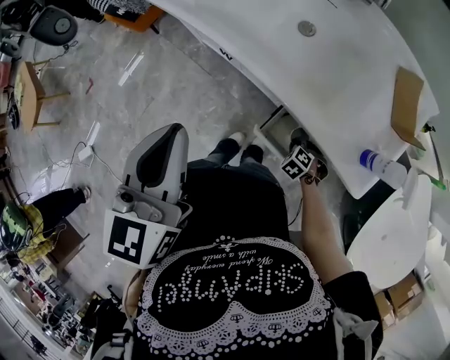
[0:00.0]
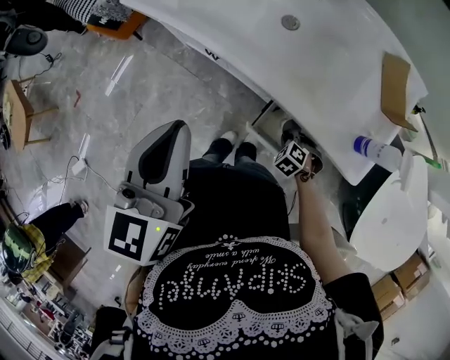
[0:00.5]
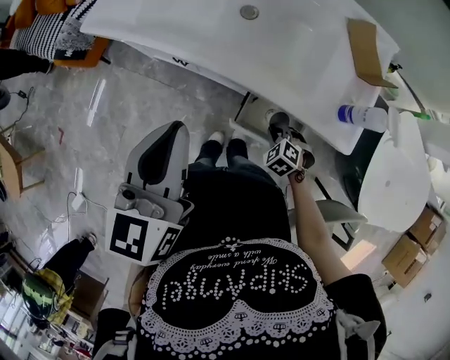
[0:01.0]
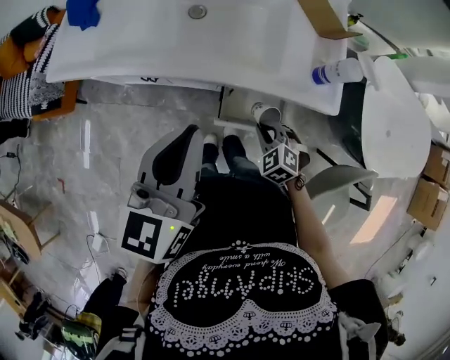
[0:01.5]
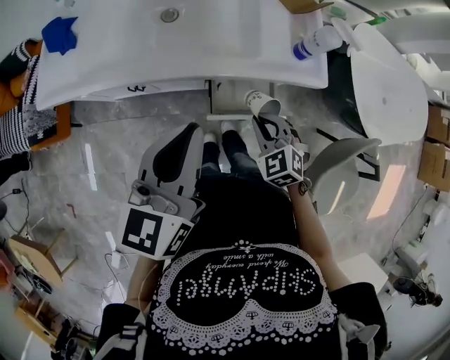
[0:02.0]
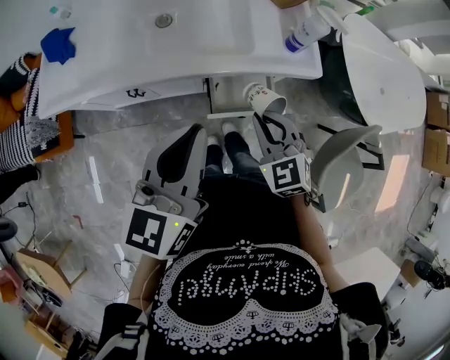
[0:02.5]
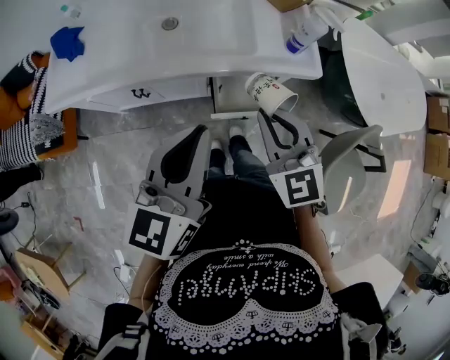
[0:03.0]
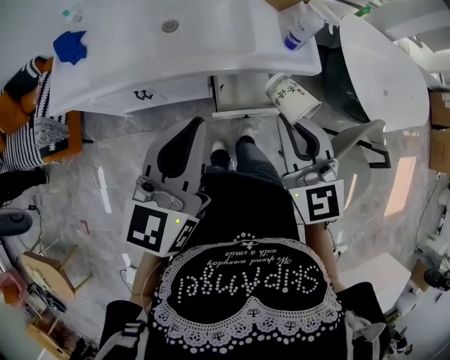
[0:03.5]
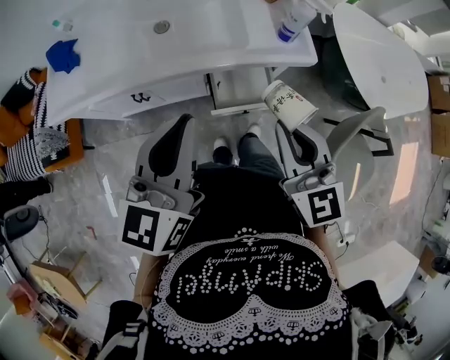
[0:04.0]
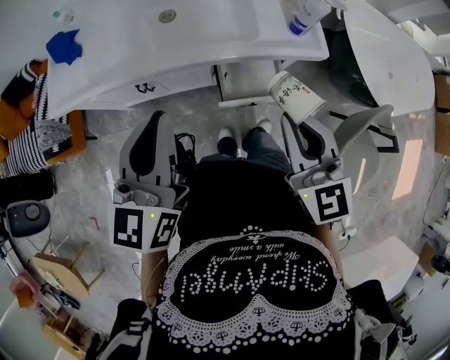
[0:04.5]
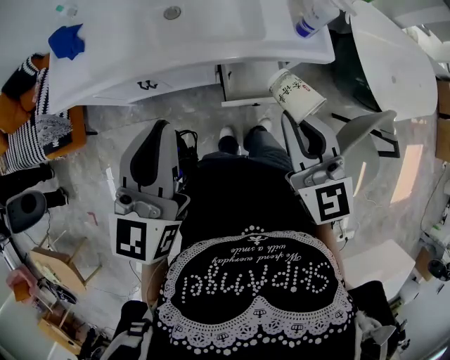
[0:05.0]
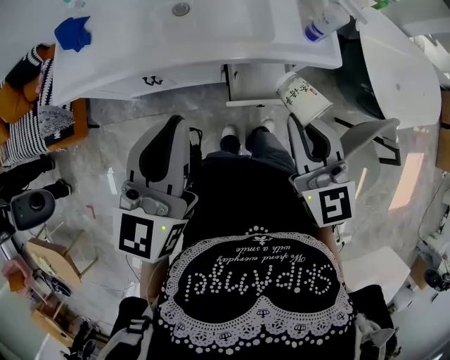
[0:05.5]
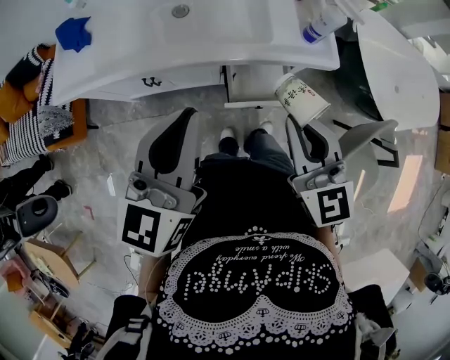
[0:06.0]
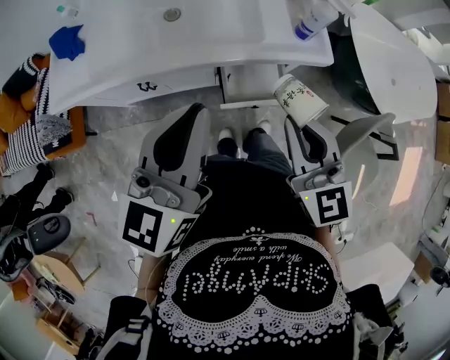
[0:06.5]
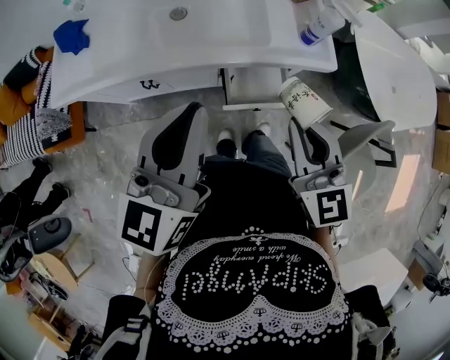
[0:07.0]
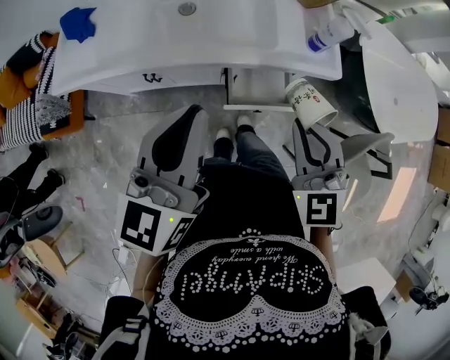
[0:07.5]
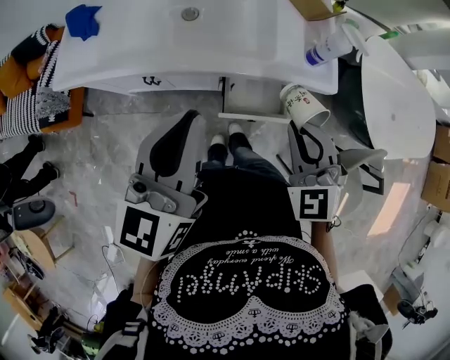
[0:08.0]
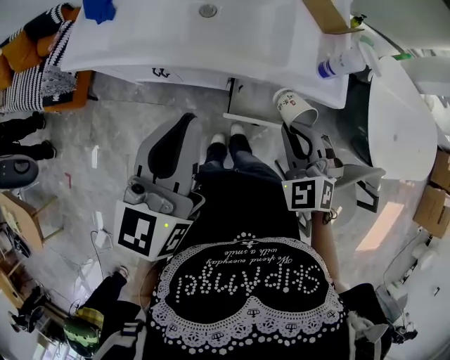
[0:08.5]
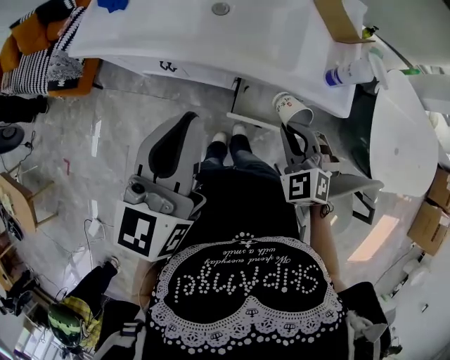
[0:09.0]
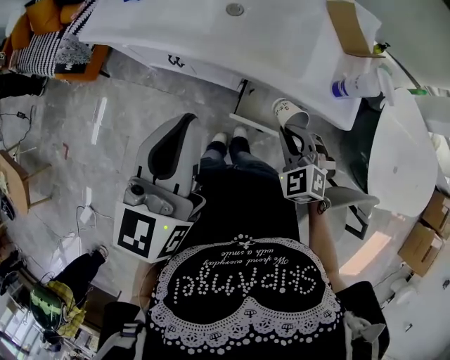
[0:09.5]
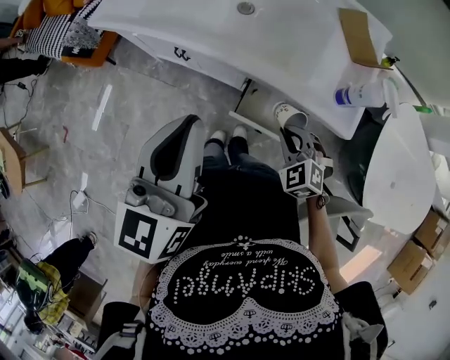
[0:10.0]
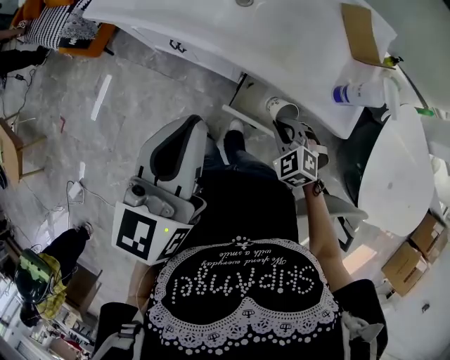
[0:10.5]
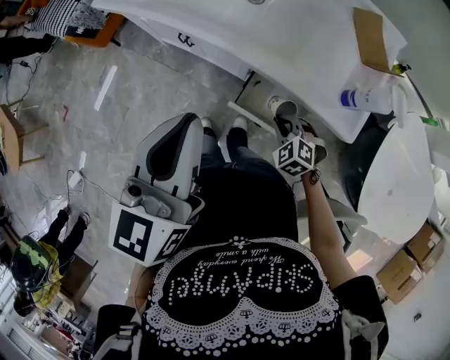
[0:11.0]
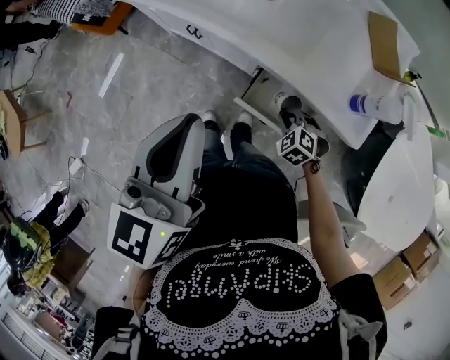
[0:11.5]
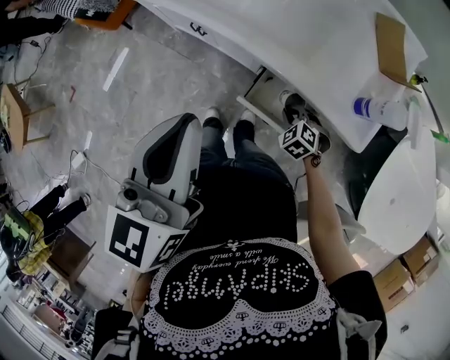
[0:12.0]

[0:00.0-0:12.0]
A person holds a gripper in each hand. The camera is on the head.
0:00.0 to 0:02.0: The left gripper shifts by roughly 10 cm, and changes its angle by roughly 50 degrees. Meanwhile the right gripper goes some 25 cm upward, and tilts its fingers roughly 30 degrees upward.
0:02.0 to 0:04.0: The right gripper moves upward, roughly 20 cm, and points its fingers approximately 30 degrees further upward.
0:04.0 to 0:06.0: The grippers move only a little.
0:06.0 to 0:08.0: The right gripper moves approximately 5 cm, and turns by approximately 40 degrees.
0:08.0 to 0:10.0: The right gripper heads downward, covering approximately 15 cm, and swivels about 30 degrees, while the left gripper rotates some 20 degrees.
0:10.0 to 0:12.0: The right gripper shifts about 15 cm downward.

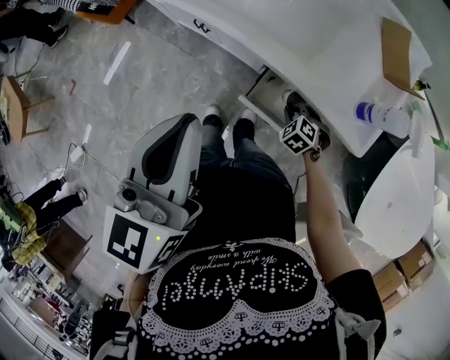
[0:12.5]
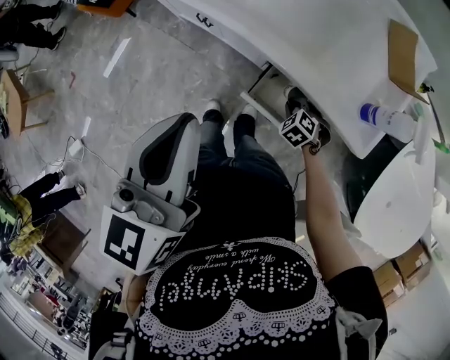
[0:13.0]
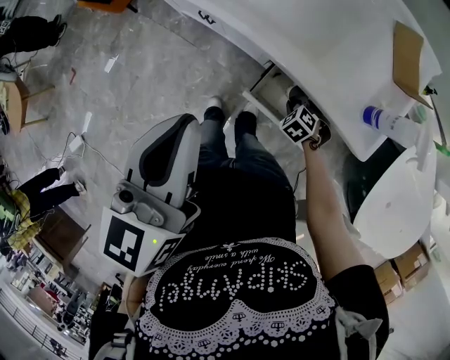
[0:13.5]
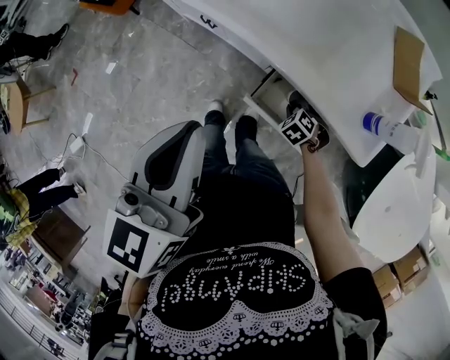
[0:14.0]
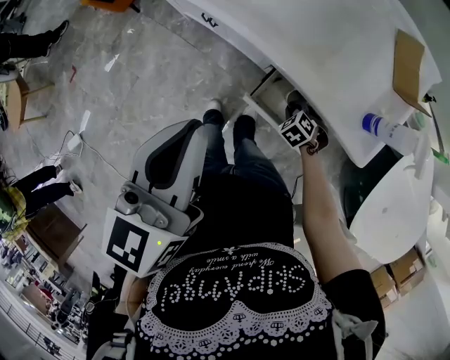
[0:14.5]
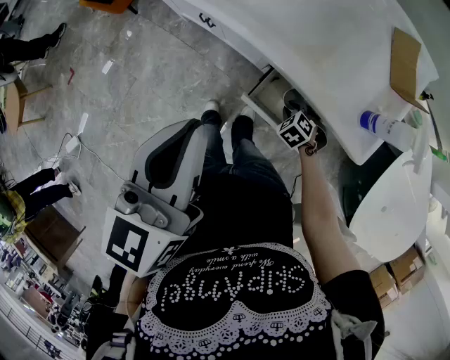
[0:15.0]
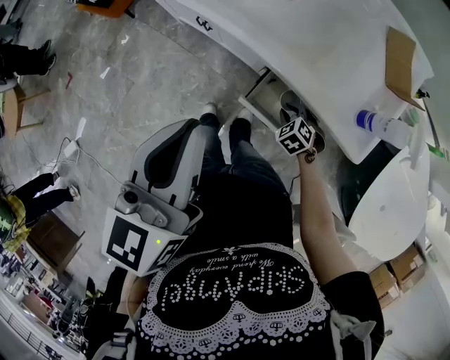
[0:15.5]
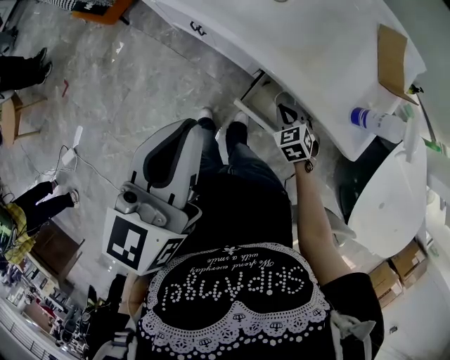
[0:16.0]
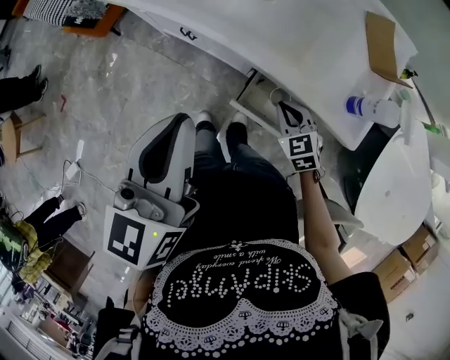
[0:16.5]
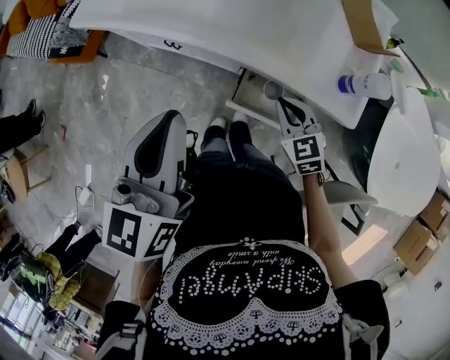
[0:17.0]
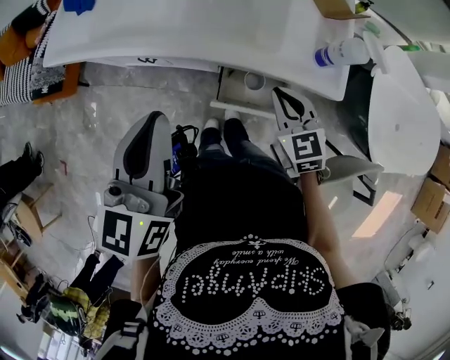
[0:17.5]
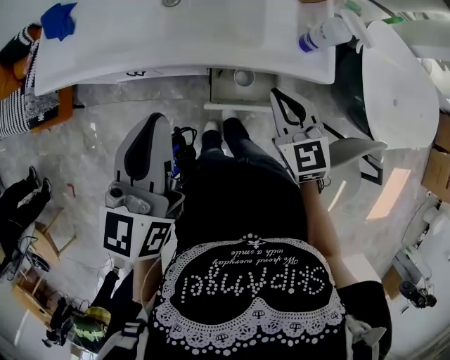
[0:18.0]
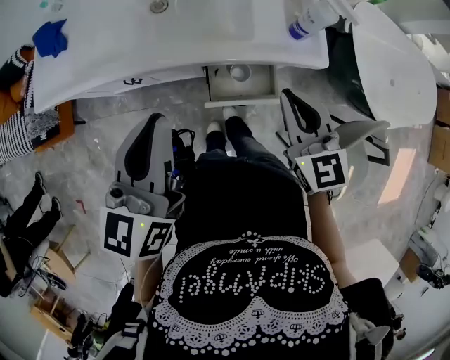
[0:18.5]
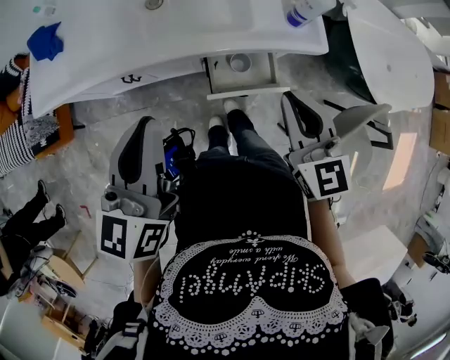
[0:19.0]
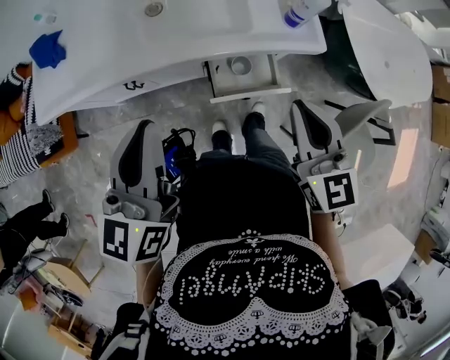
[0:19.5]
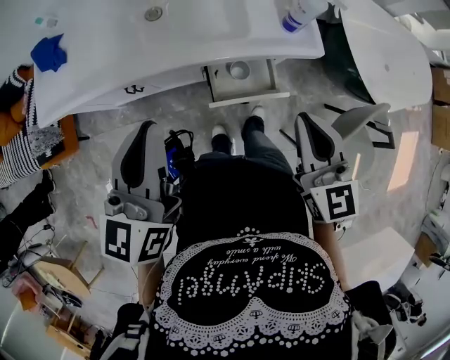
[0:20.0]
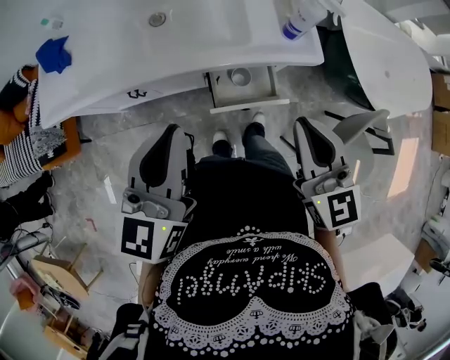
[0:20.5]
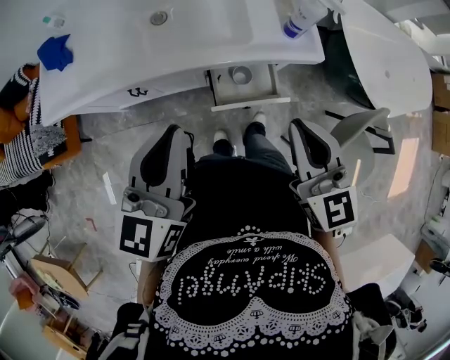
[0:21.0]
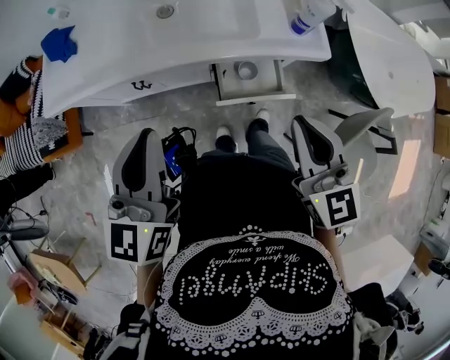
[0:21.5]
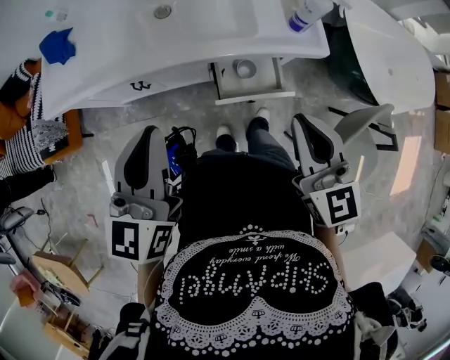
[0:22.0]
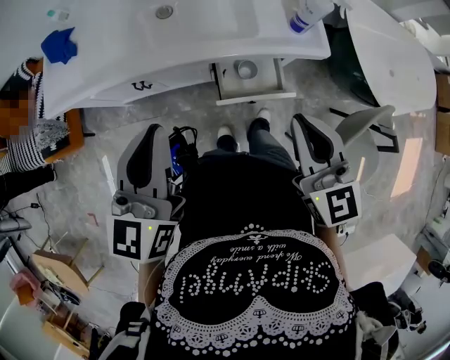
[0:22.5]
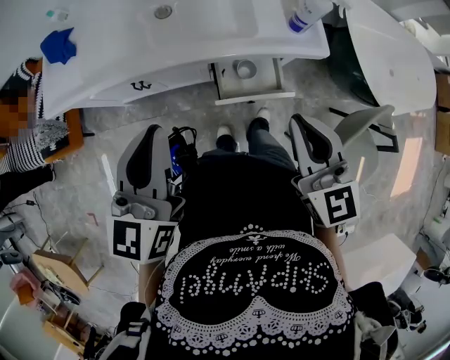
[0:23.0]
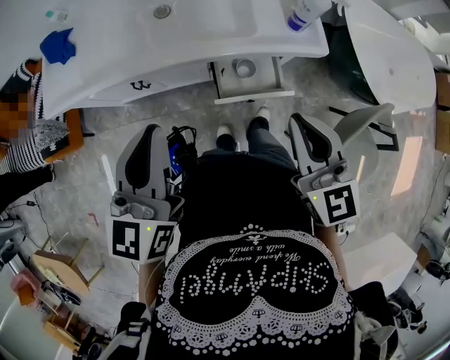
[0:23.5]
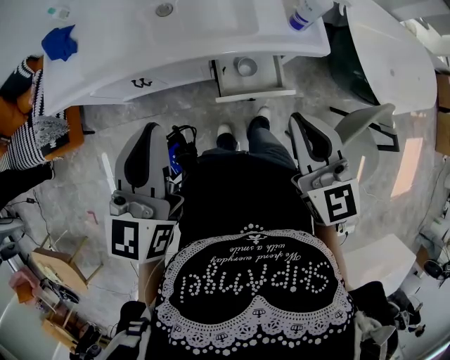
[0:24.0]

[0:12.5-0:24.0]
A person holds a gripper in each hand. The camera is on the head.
0:12.5 to 0:14.5: The grippers move only a little.
0:14.5 to 0:16.5: The right gripper shifts about 15 cm upward, and tips its fingers upward by some 30 degrees.
0:16.5 to 0:18.5: The right gripper goes some 20 cm upward, and turns by about 50 degrees. Meanwhile the left gripper turns by approximately 30 degrees.
0:18.5 to 0:20.0: The right gripper is displaced backward by approximately 5 cm.
0:20.0 to 0:22.0: The grippers make only small movements.
0:22.0 to 0:24.0: Both grippers stay about where they are.

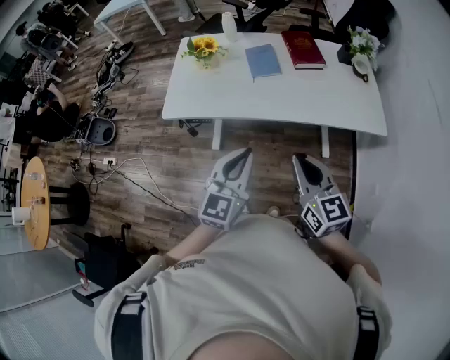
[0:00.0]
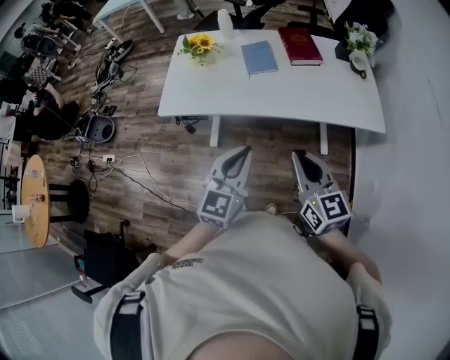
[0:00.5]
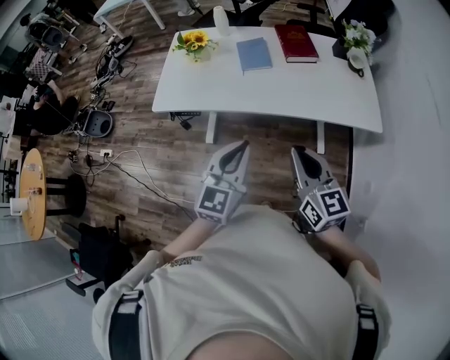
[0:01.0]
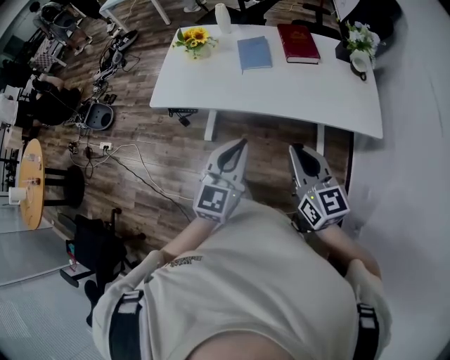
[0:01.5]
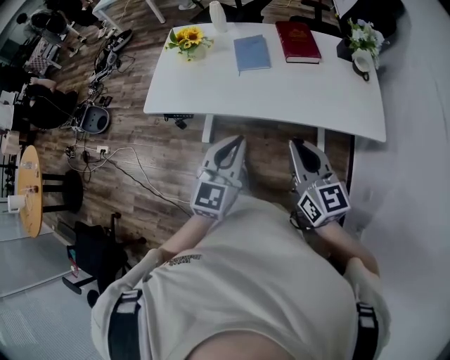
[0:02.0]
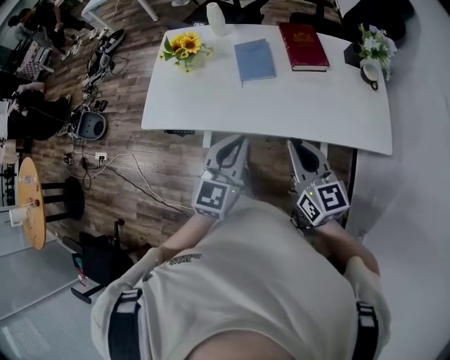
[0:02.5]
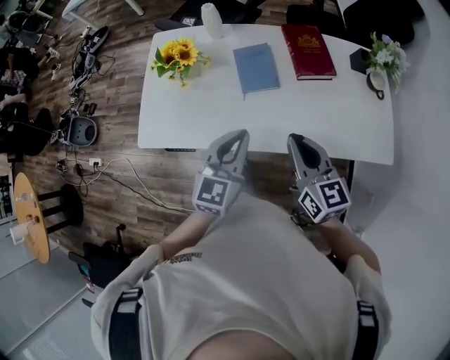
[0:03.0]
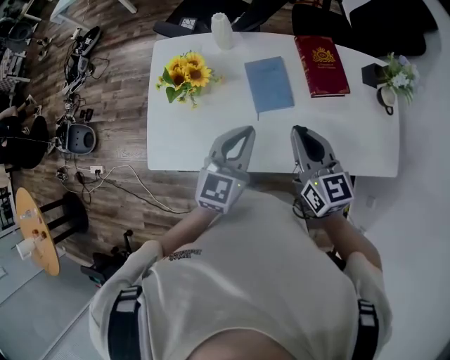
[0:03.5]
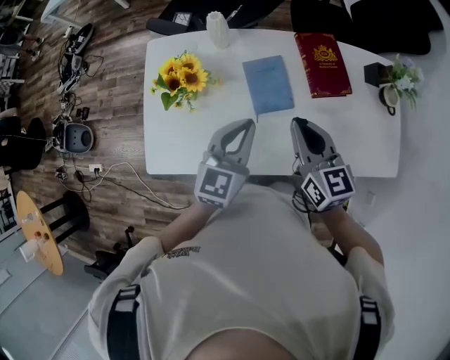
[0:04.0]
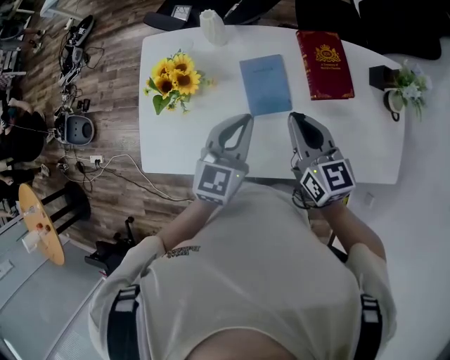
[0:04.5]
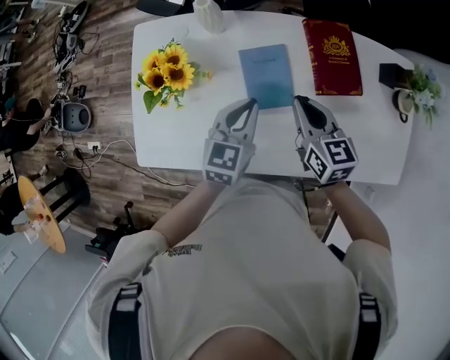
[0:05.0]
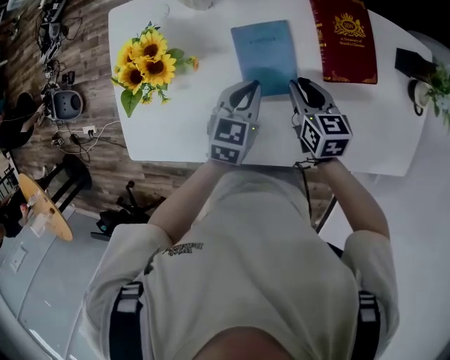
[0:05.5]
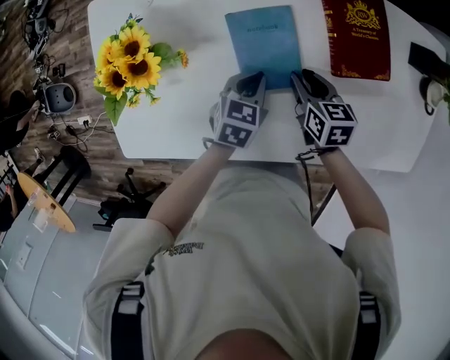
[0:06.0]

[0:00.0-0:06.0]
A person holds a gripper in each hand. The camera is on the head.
0:00.0 to 0:02.0: Both grippers travel together to the right and forward, some 10 cm.
0:02.0 to 0:04.0: Both grippers move forward, roughly 35 cm.
0:04.0 to 0:06.0: Both grippers move downward, some 25 cm. The right gripper points its fingers some 30 degrees further downward, and opens its fingers, while the left gripper angles its fingers downward, by roughly 40 degrees.
